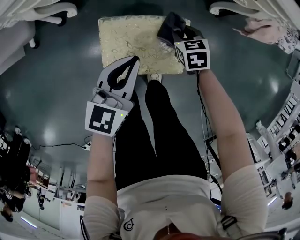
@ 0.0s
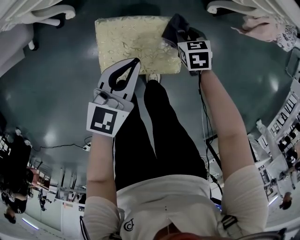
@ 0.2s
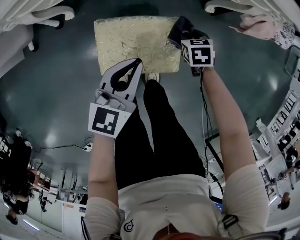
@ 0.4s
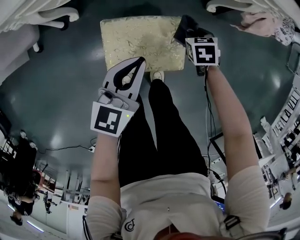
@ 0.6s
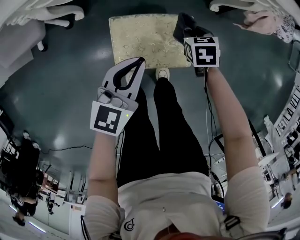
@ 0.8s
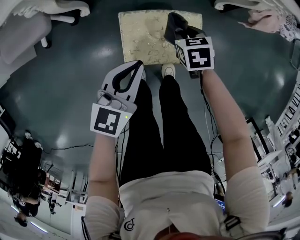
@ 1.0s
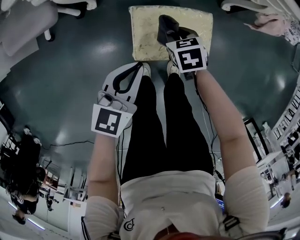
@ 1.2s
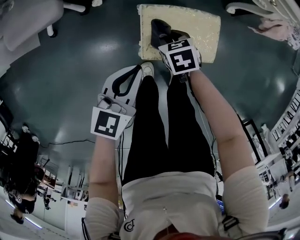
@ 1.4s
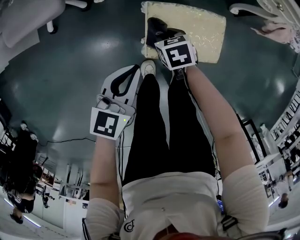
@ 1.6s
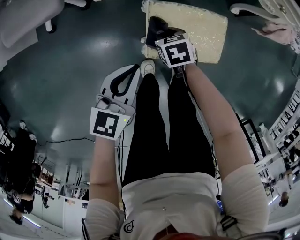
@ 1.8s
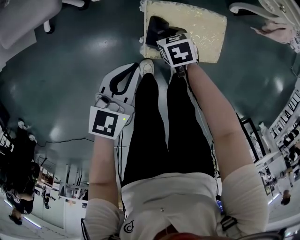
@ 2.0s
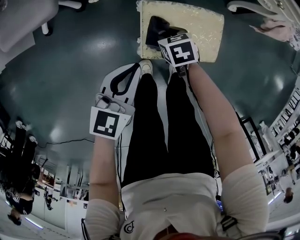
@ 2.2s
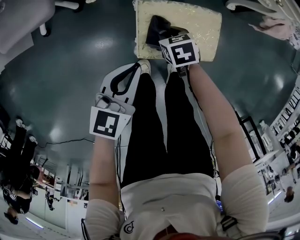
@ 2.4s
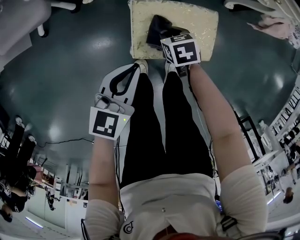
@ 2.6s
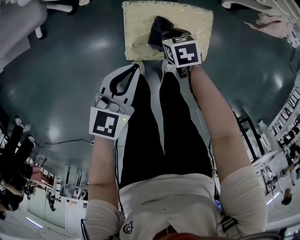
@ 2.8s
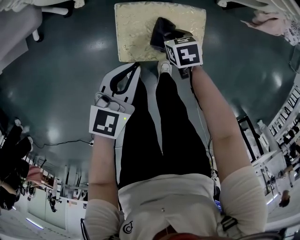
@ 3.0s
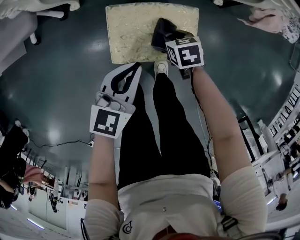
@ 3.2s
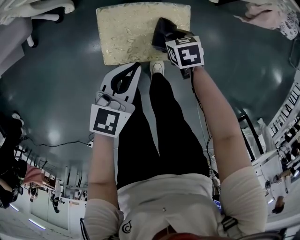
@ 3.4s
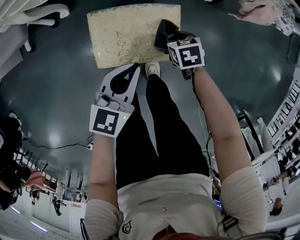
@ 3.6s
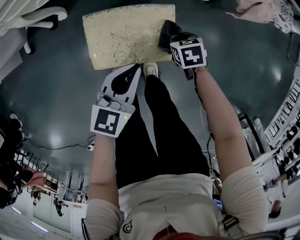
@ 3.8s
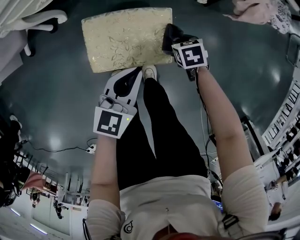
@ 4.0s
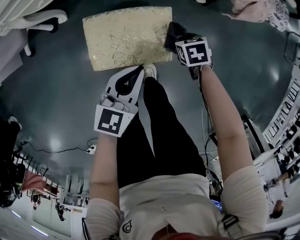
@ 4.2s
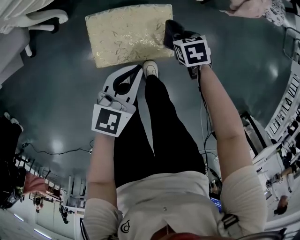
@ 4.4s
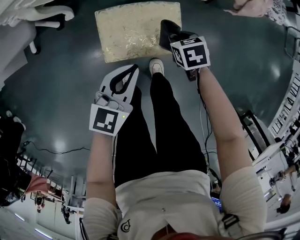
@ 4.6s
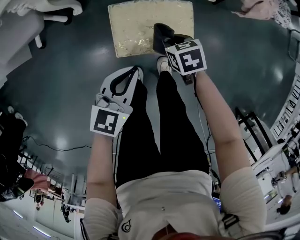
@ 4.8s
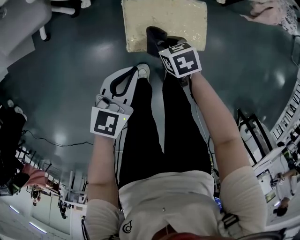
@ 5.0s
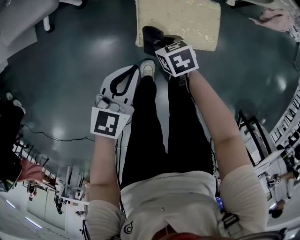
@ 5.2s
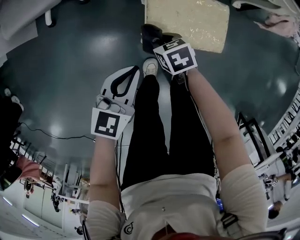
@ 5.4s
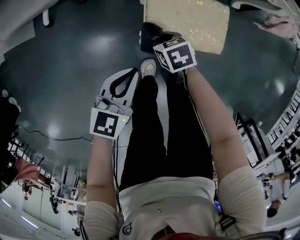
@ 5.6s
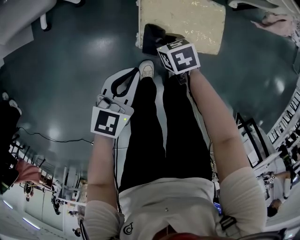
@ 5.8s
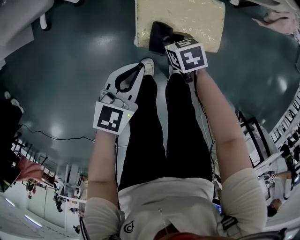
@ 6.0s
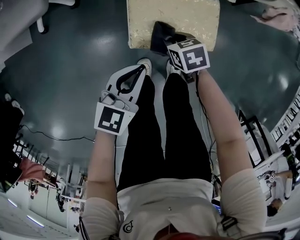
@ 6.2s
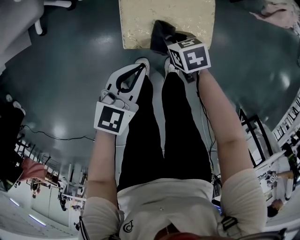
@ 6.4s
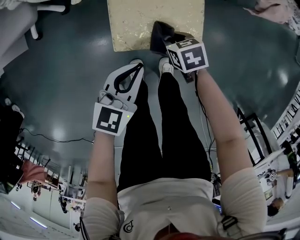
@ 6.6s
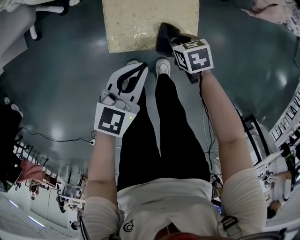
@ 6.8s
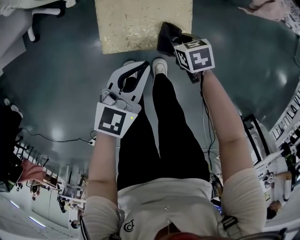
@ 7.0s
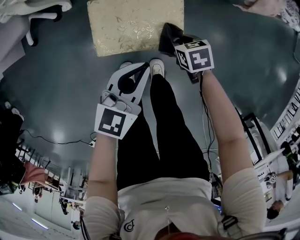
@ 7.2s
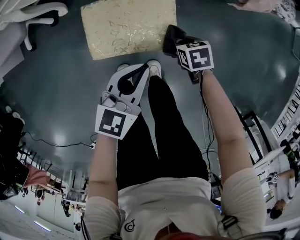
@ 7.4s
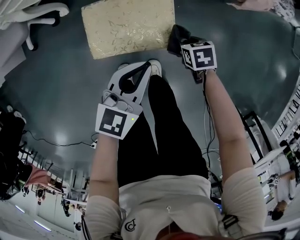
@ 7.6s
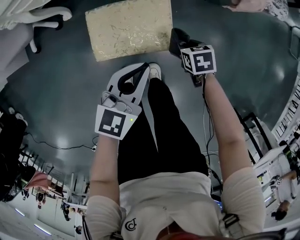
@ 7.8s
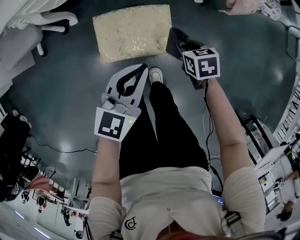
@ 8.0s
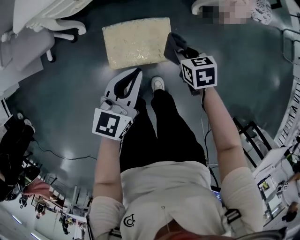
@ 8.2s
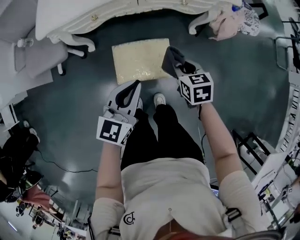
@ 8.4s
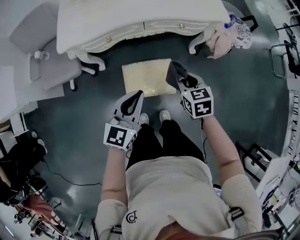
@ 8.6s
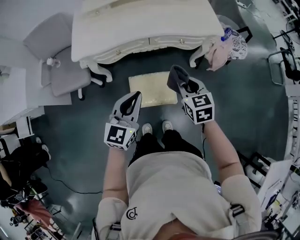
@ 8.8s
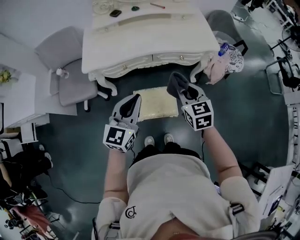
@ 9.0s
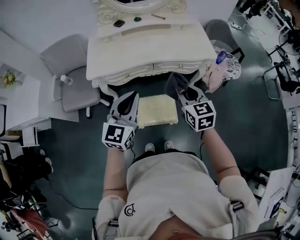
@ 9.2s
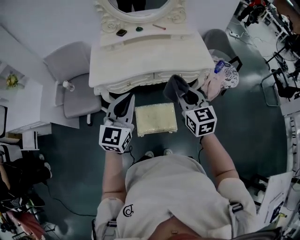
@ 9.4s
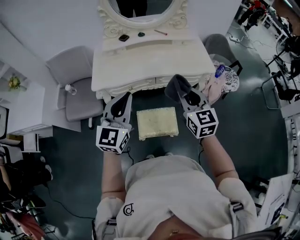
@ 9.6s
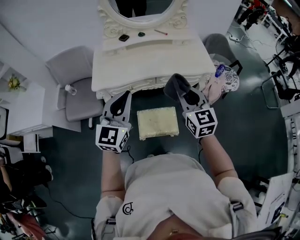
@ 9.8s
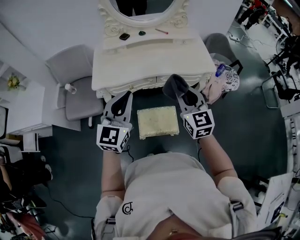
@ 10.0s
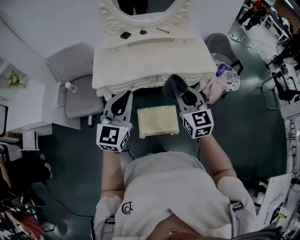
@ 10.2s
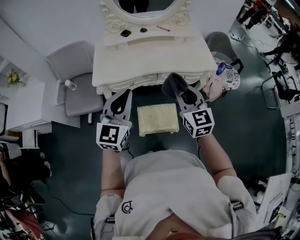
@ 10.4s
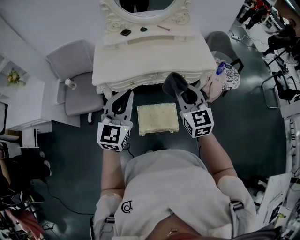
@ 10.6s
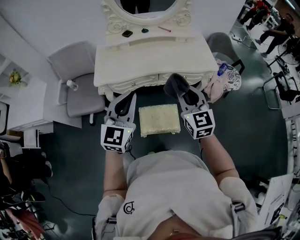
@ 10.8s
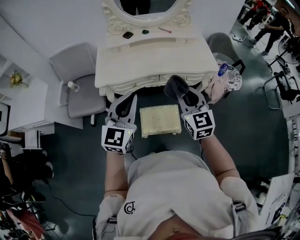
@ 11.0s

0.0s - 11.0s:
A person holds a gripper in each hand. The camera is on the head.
0.0s - 1.6s: The grippers both shift to the left and backward by approximately 20 cm.
1.6s - 3.2s: The two grippers go roughly 15 cm to the right.
3.2s - 4.8s: The right gripper shifts some 5 cm upward.
4.8s - 6.2s: The left gripper shifts approximately 5 cm downward, while the right gripper goes about 10 cm to the left and downward.
6.2s - 7.8s: The left gripper shifts by about 20 cm; the right gripper ends up roughly 25 cm from where it was.
7.8s - 9.4s: Both grippers move upward, roughly 50 cm. The right gripper angles its fingers upward, by roughly 60 degrees; the left gripper swivels some 30 degrees.
9.4s - 11.0s: The grippers make only small movements.

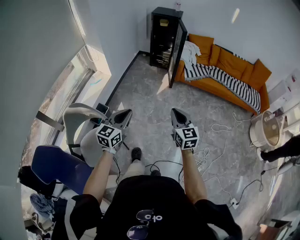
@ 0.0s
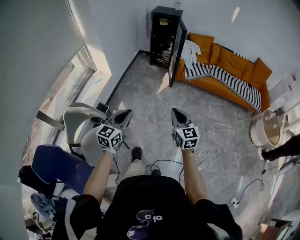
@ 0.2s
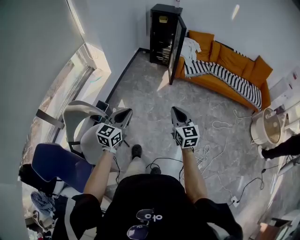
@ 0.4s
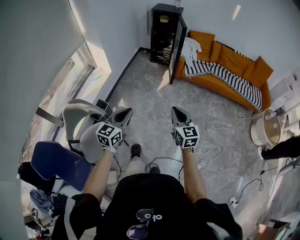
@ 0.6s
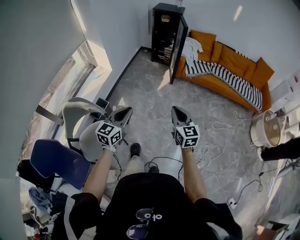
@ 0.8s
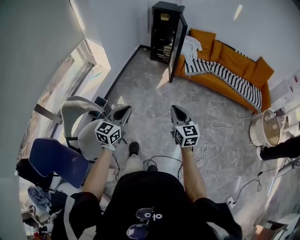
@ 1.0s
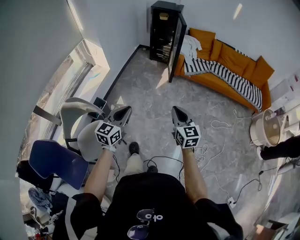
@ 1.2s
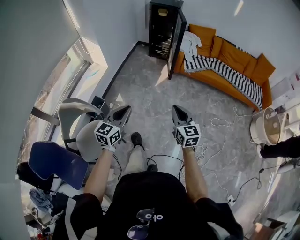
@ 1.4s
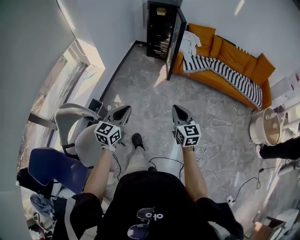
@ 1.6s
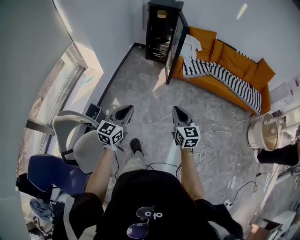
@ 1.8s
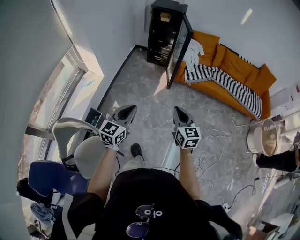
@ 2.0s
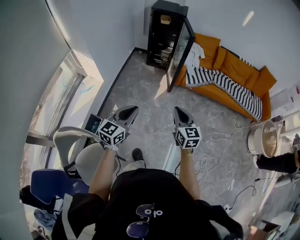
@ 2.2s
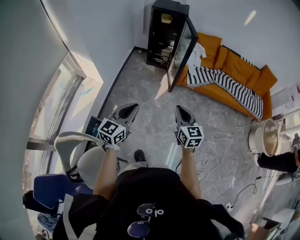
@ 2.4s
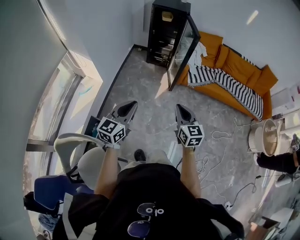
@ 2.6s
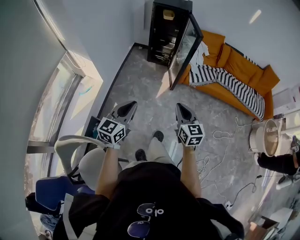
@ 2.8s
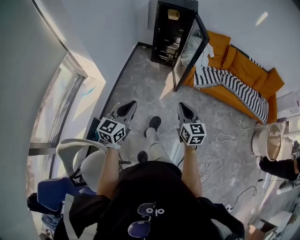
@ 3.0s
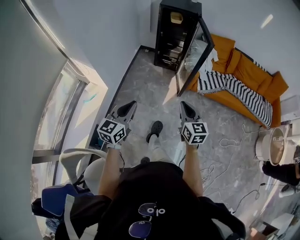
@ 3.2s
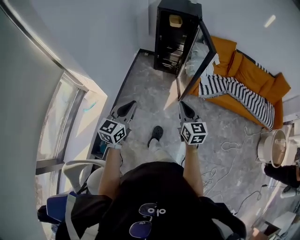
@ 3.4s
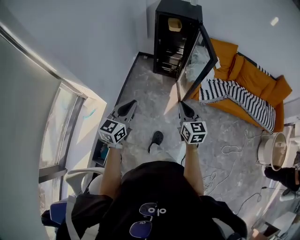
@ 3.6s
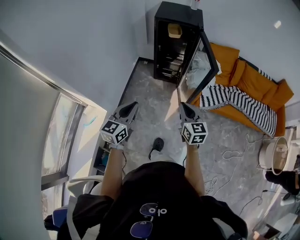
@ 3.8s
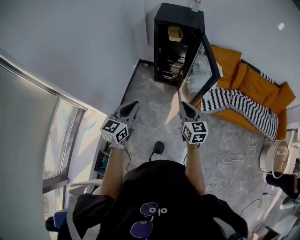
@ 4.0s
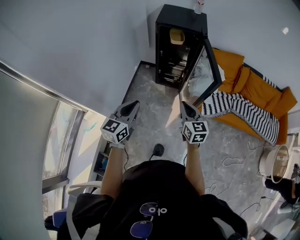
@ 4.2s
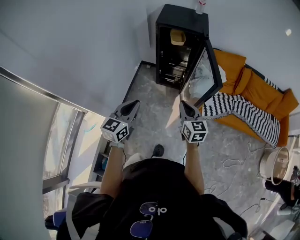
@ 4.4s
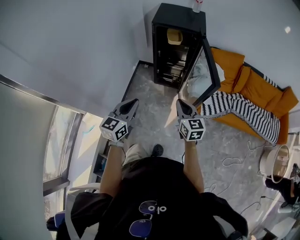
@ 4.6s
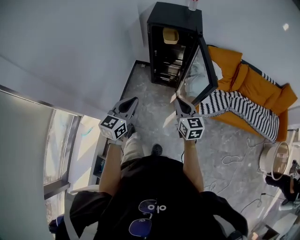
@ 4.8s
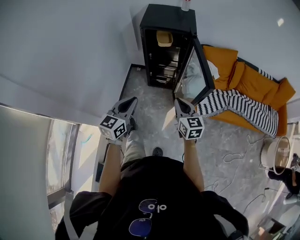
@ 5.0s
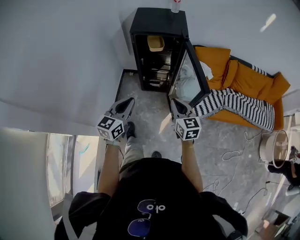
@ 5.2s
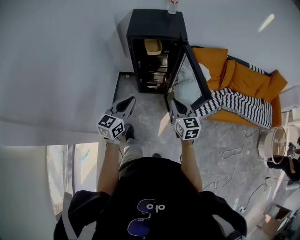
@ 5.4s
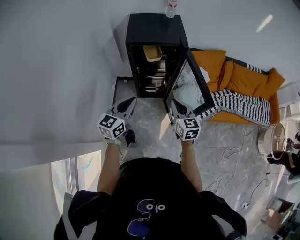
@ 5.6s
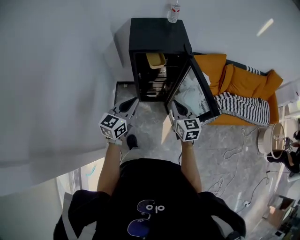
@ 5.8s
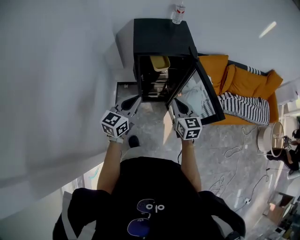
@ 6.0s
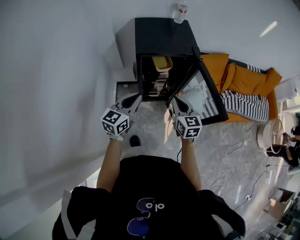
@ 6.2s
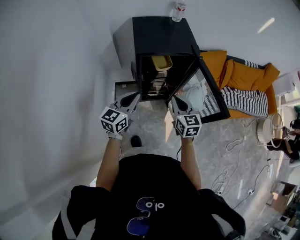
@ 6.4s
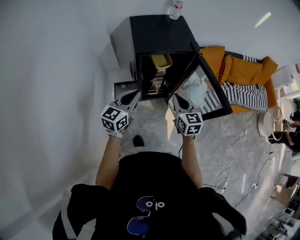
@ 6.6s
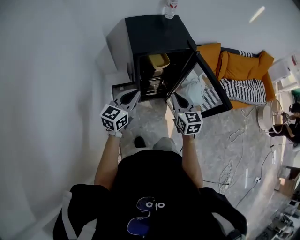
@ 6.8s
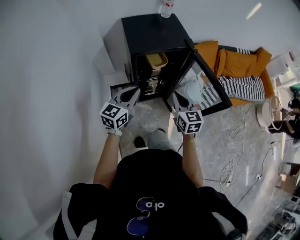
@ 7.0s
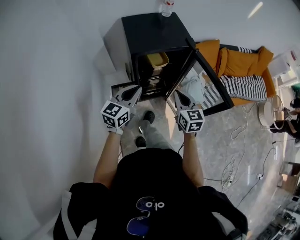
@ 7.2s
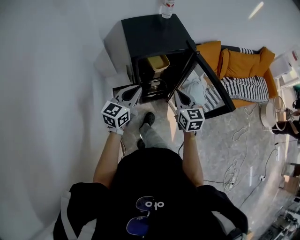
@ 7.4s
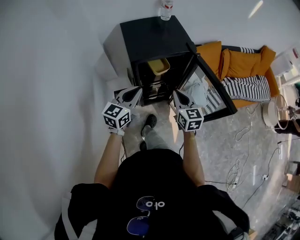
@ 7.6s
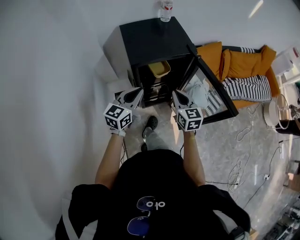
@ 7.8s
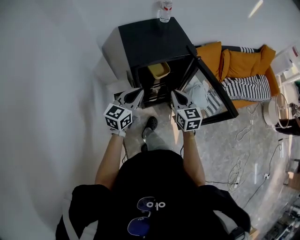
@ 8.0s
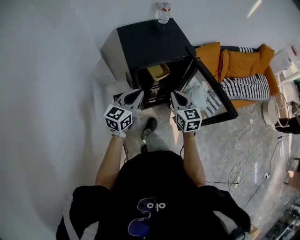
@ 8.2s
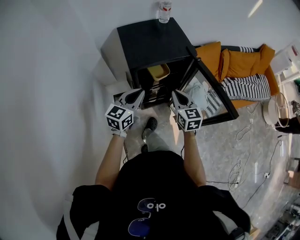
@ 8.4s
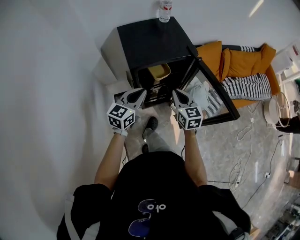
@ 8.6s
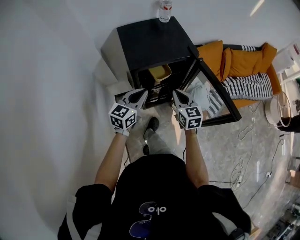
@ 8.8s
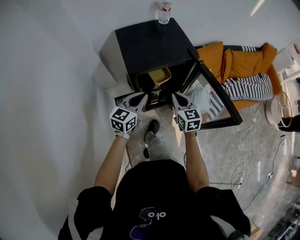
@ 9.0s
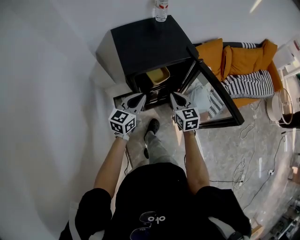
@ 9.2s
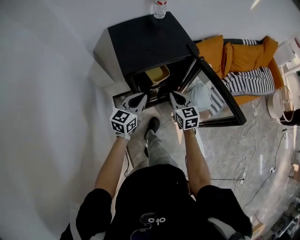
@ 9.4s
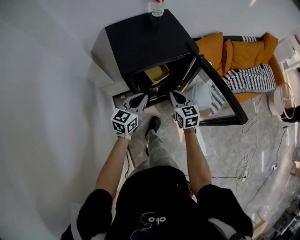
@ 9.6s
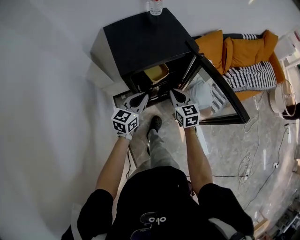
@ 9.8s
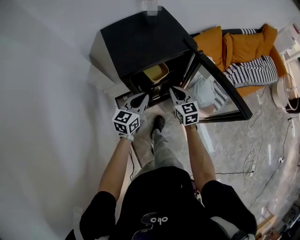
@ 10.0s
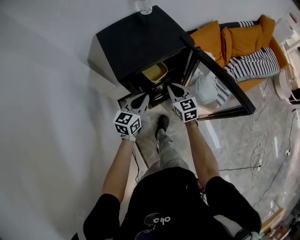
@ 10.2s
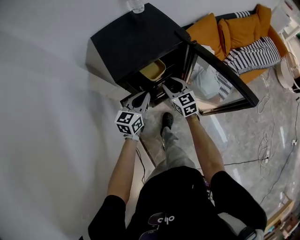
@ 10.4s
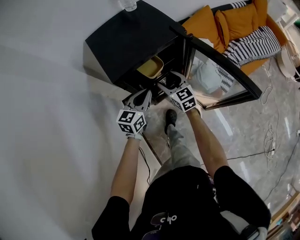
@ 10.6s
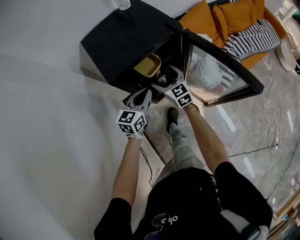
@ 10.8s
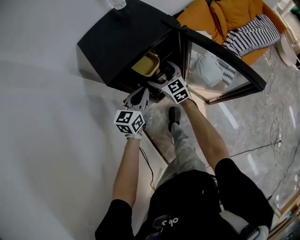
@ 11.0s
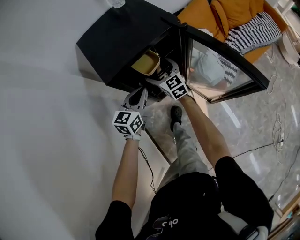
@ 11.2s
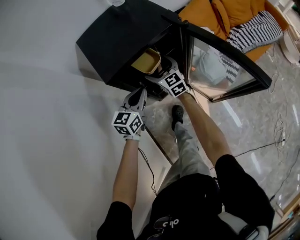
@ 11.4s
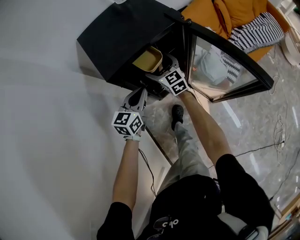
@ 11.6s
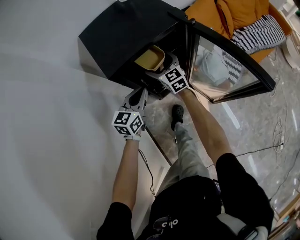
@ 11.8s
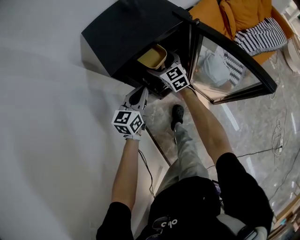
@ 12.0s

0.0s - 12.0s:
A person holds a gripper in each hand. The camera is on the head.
0.0s - 1.6s: Both grippers travel together forward, approximately 10 cm.
1.6s - 3.0s: The grippers both shift forward and to the left by some 35 cm.
3.0s - 4.4s: The two grippers travel together, forward, about 40 cm.
4.4s - 6.0s: Both grippers move forward, some 30 cm. The left gripper changes its angle by approximately 20 degrees.
6.0s - 7.6s: Both grippers move forward and to the left, roughly 10 cm.
7.6s - 9.0s: The left gripper shifts some 10 cm forward and downward, while the right gripper travels forward by roughly 5 cm.
9.0s - 10.4s: The right gripper travels downward and forward by about 10 cm. The left gripper moves downward, roughly 5 cm.
10.4s - 12.0s: The right gripper travels forward and to the left by approximately 10 cm, and opens.

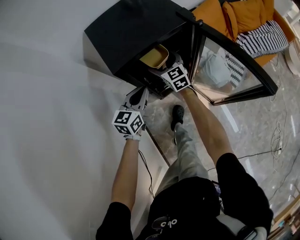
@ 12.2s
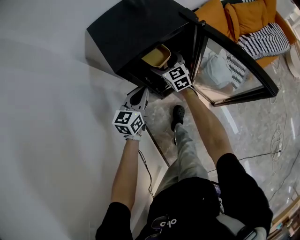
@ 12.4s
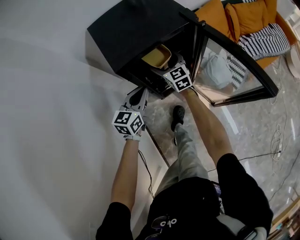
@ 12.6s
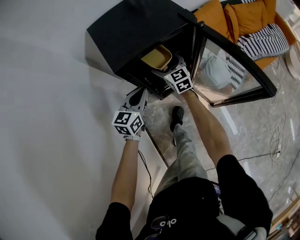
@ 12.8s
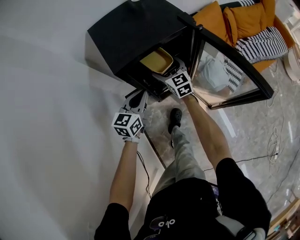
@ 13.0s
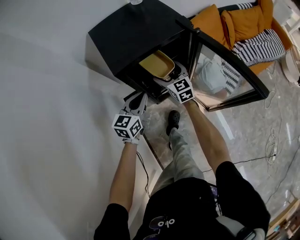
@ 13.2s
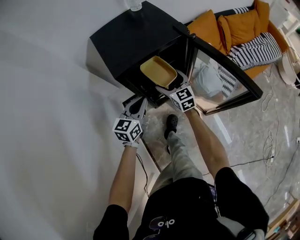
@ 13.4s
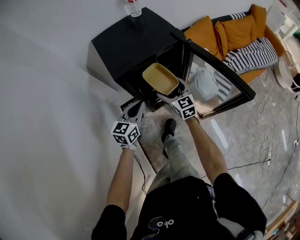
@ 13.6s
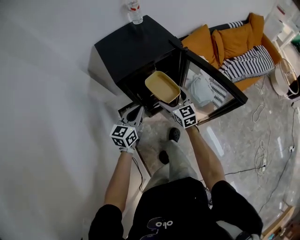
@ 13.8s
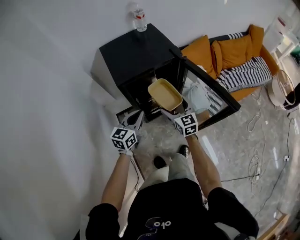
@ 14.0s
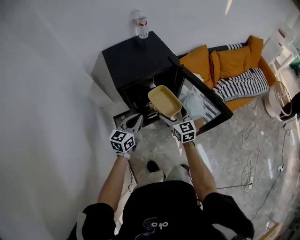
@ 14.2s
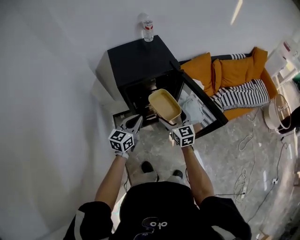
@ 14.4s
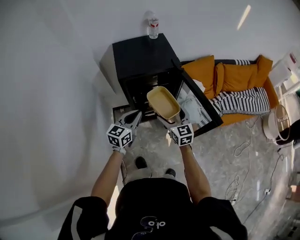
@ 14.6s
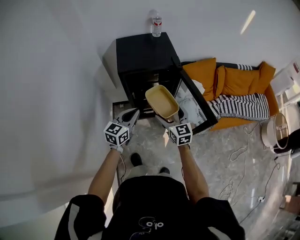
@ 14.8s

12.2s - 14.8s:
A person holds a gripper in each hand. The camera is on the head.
12.2s - 13.4s: The right gripper travels backward by some 10 cm.
13.4s - 14.8s: The grippers both shift backward, upward and to the right by approximately 20 cm.
